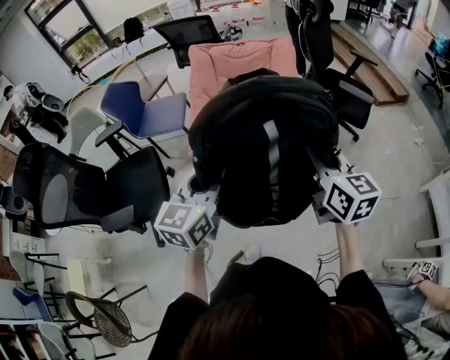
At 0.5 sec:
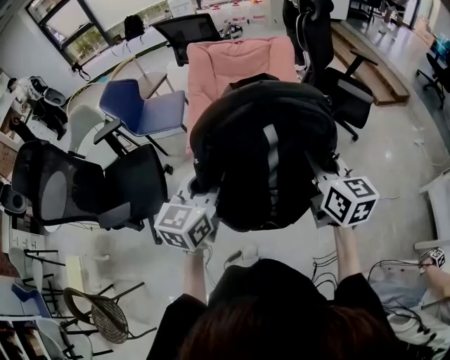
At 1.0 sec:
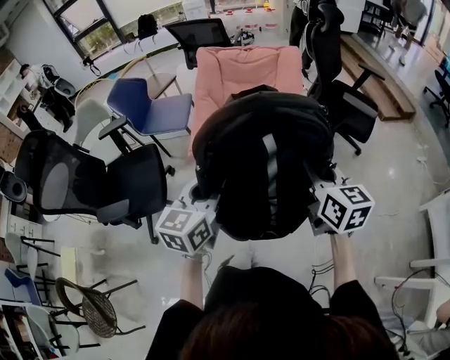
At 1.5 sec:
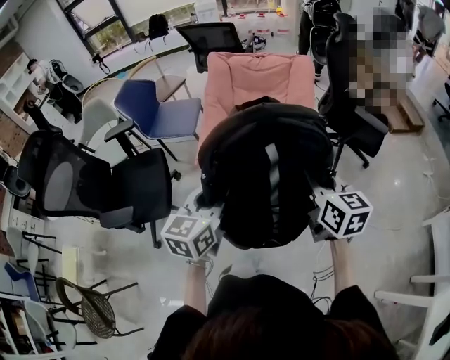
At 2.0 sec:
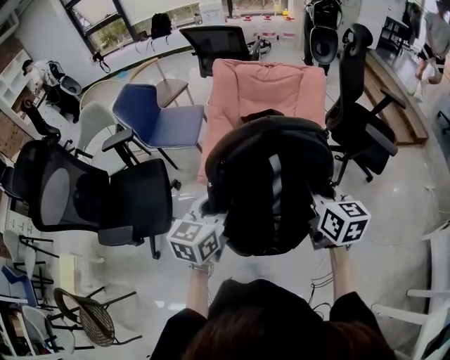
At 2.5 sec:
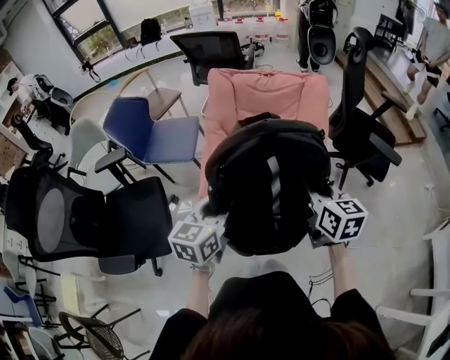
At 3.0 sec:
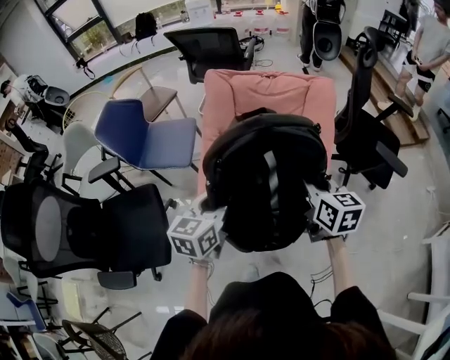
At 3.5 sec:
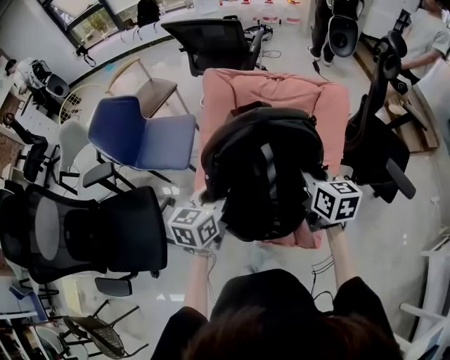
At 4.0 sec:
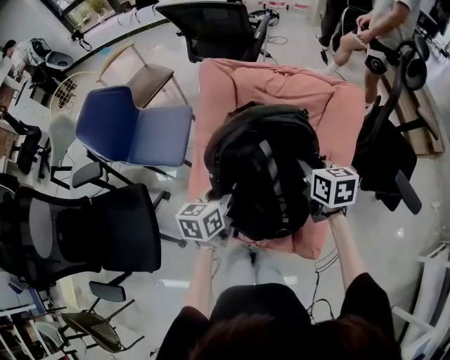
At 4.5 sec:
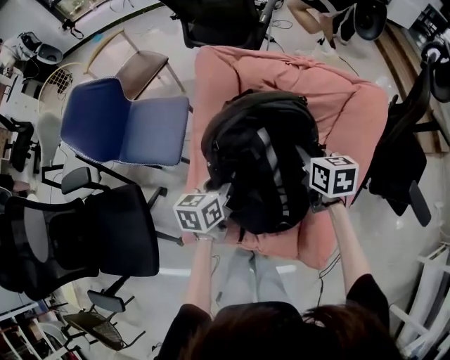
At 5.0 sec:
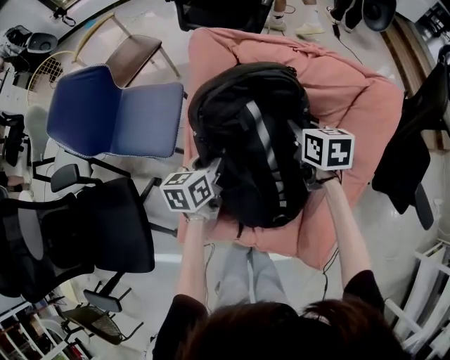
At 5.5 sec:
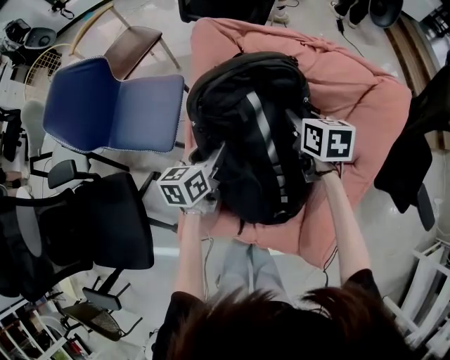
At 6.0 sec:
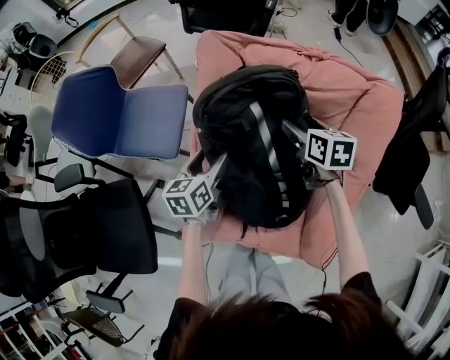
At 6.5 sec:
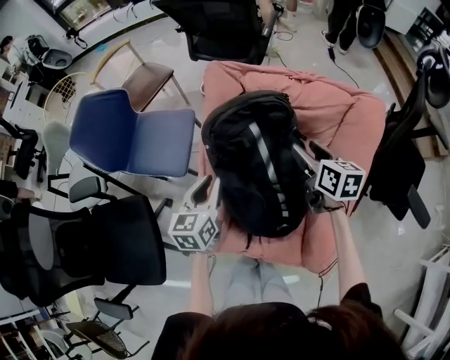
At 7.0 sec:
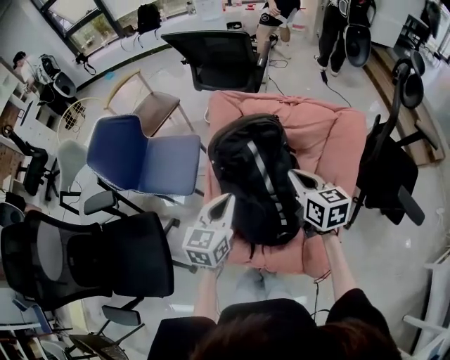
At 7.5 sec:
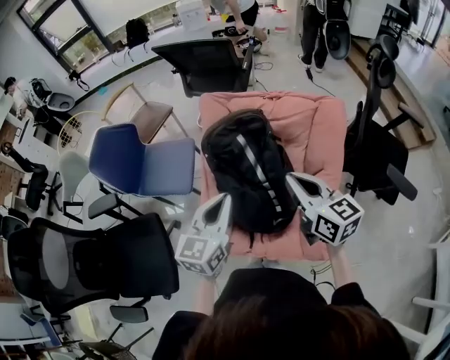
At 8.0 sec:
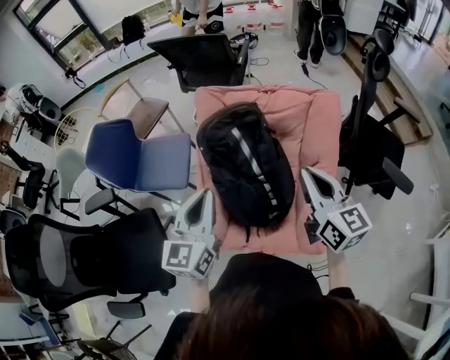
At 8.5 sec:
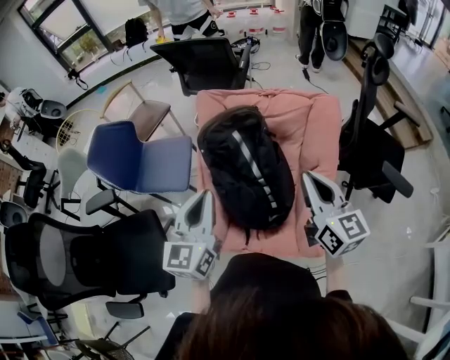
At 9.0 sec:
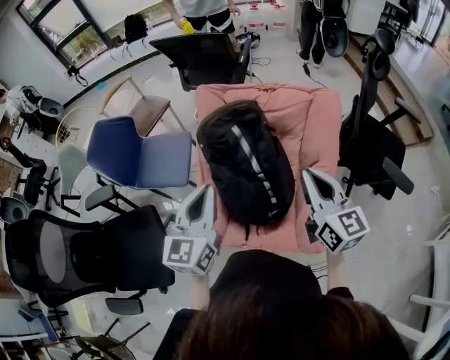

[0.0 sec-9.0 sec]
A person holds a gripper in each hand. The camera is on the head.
0.0 sec to 2.0 sec: The grippers both shift forward and downward by approximately 15 cm.
2.0 sec to 4.5 sec: The two grippers travel together, forward, roughly 50 cm. The left gripper goes some 20 cm downward, and rotates roughly 20 degrees. The right gripper turns by about 20 degrees.
4.5 sec to 7.0 sec: The right gripper heads upward and backward, covering about 10 cm, and opens and closes again. The left gripper shifts roughly 15 cm upward, changes its angle by about 20 degrees, and opens and closes again.
7.0 sec to 9.0 sec: The left gripper goes some 15 cm upward and backward. The right gripper travels backward and upward by some 20 cm, and turns by approximately 20 degrees.

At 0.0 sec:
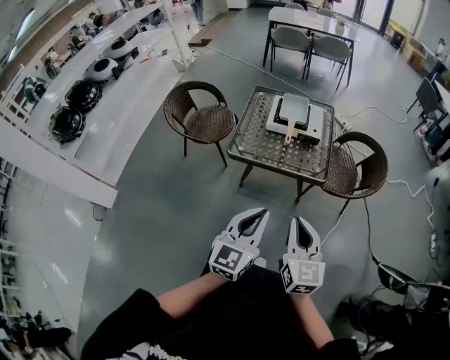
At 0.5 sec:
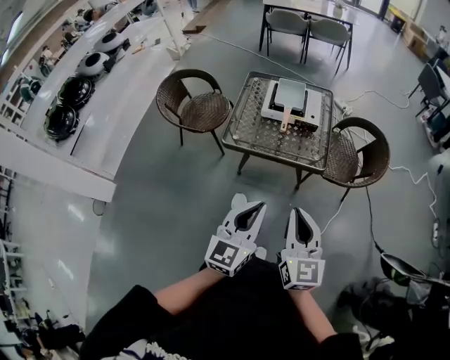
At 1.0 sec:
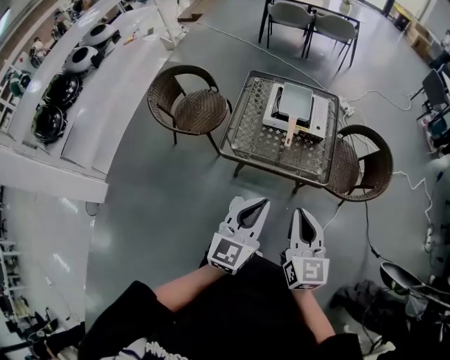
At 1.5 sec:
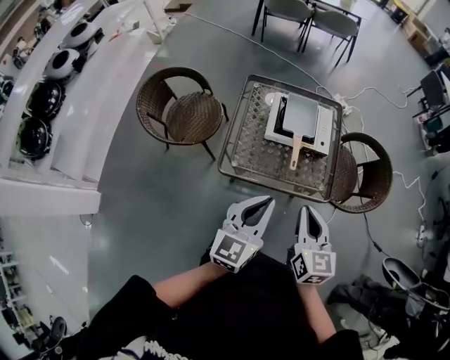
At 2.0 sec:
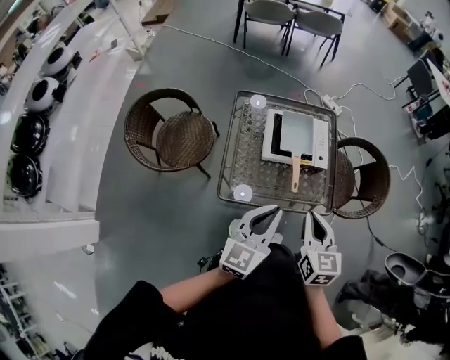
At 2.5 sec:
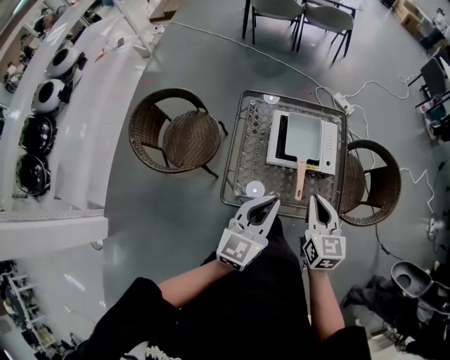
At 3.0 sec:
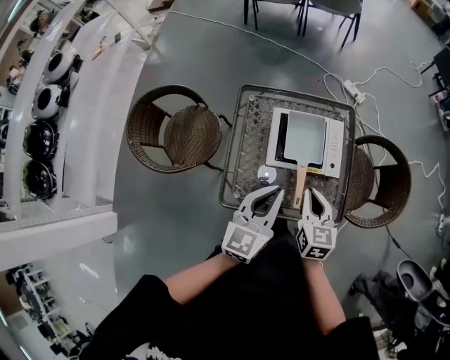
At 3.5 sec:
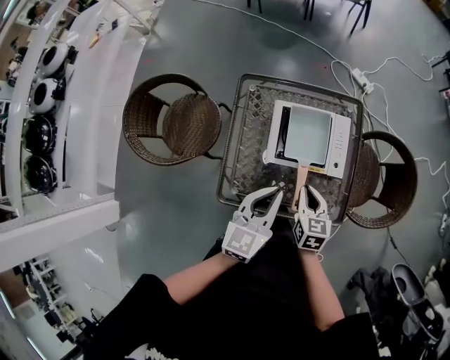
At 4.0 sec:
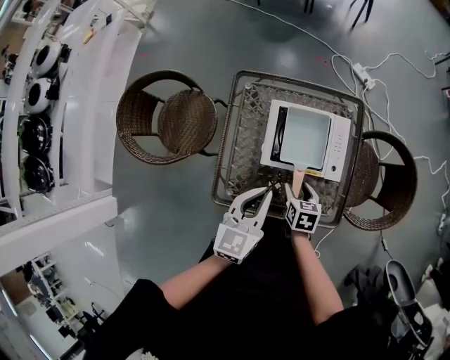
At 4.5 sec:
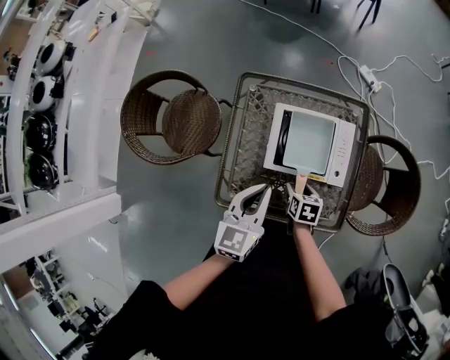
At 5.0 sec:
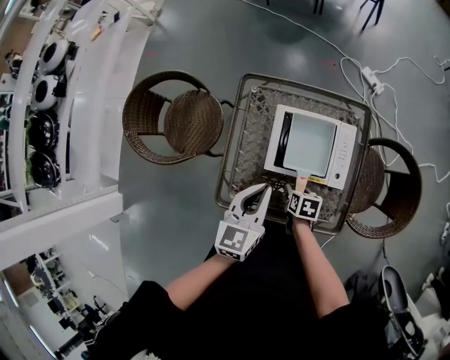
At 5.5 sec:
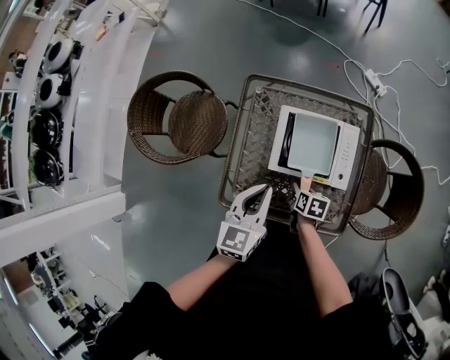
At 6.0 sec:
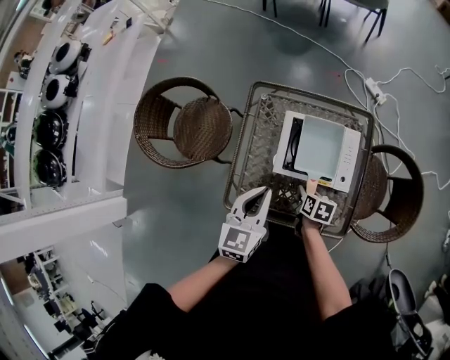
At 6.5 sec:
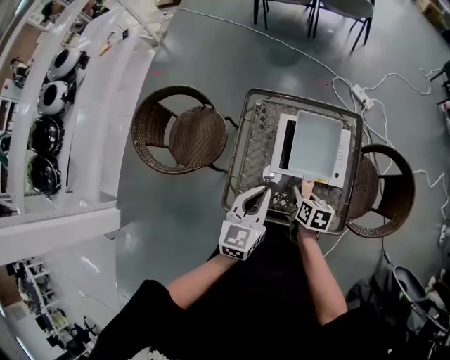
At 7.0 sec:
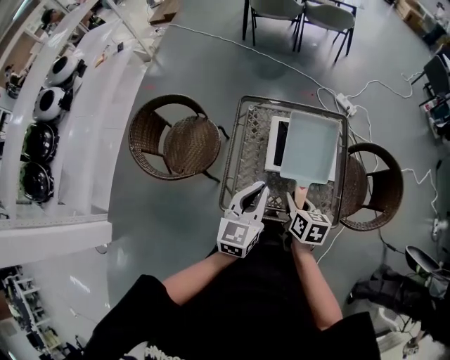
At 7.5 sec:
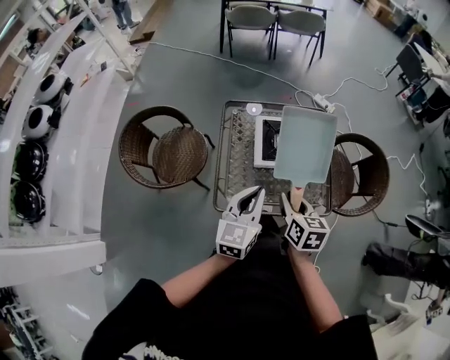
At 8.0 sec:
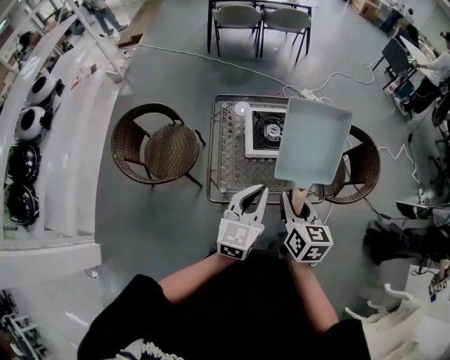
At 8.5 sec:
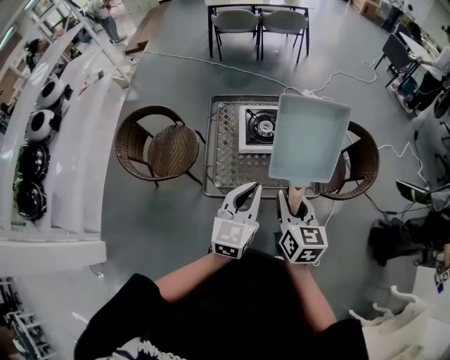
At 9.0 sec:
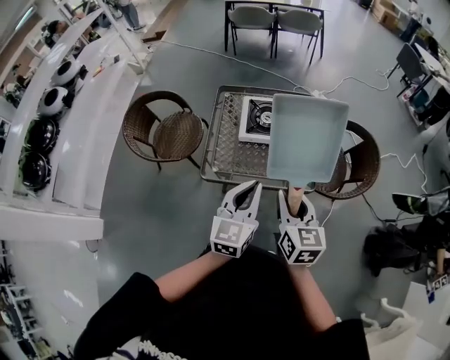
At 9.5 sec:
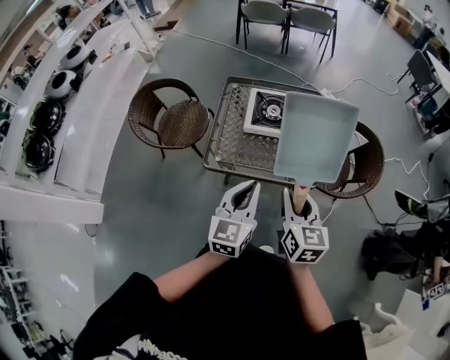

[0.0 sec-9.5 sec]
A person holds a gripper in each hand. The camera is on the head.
0.0 sec to 2.0 sec: The grippers both shift forward by roughly 35 cm.
2.0 sec to 4.0 sec: The left gripper heads forward and downward, covering roughly 25 cm, while the right gripper travels downward and forward by about 35 cm, turns by some 30 degrees, and opens its fingers.
4.0 sec to 5.5 sec: The right gripper goes roughly 5 cm downward, and closes up.
5.5 sec to 7.5 sec: The right gripper is displaced upward and backward by roughly 30 cm, and turns by roughly 30 degrees, while the left gripper goes approximately 20 cm backward and upward.
7.5 sec to 9.5 sec: The right gripper is displaced backward, to the right and upward by roughly 25 cm. Meanwhile the left gripper goes roughly 20 cm backward and to the right.

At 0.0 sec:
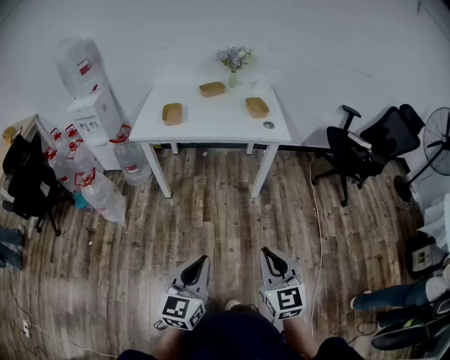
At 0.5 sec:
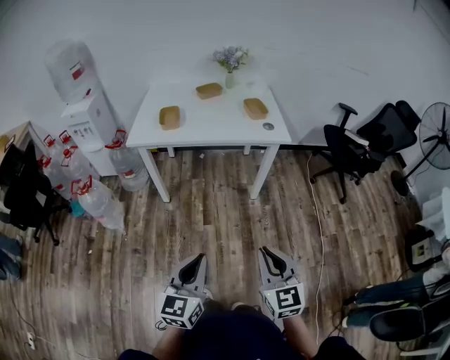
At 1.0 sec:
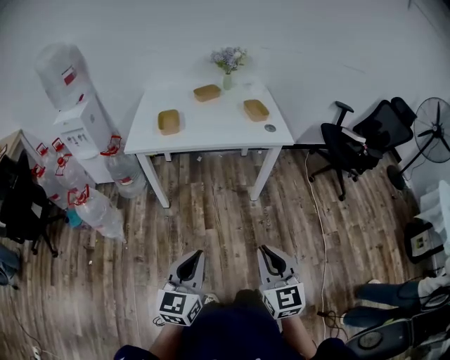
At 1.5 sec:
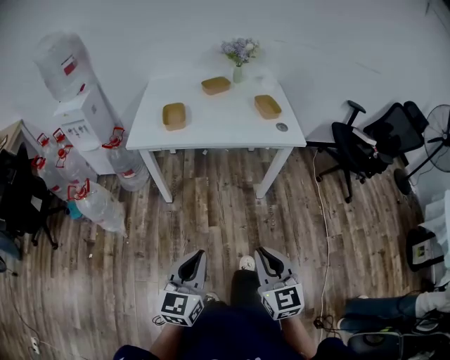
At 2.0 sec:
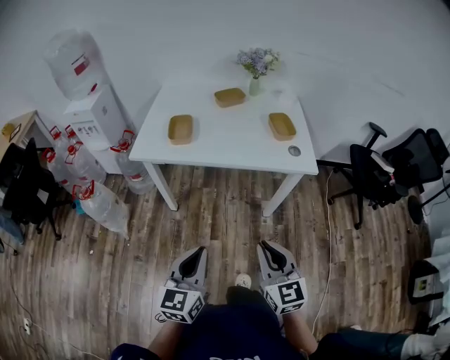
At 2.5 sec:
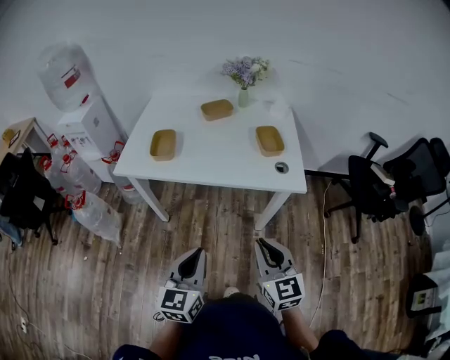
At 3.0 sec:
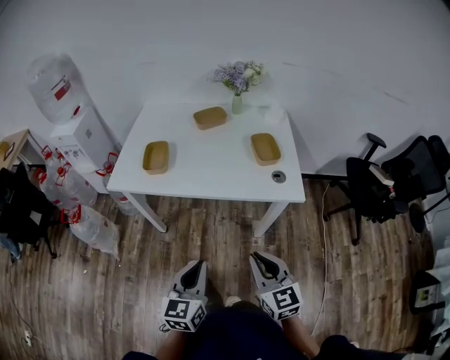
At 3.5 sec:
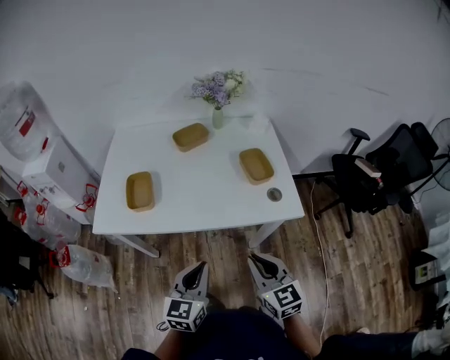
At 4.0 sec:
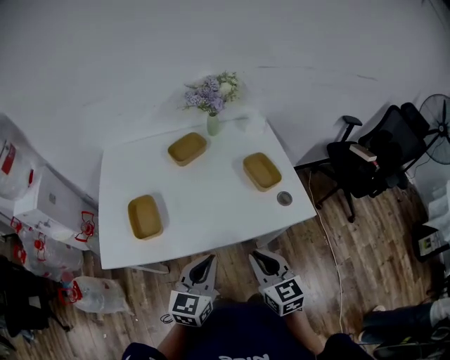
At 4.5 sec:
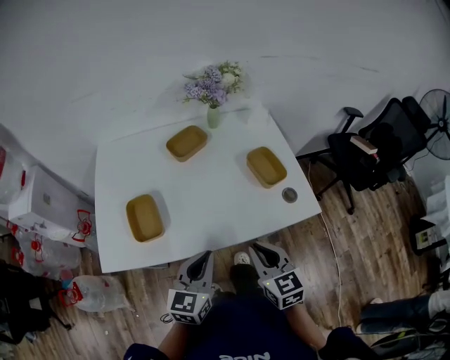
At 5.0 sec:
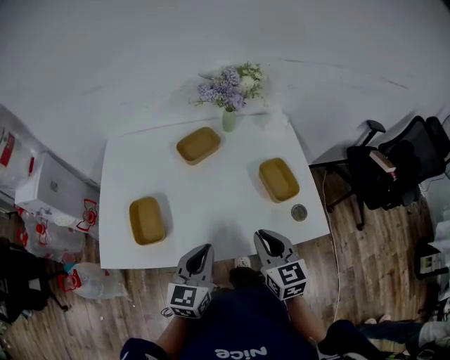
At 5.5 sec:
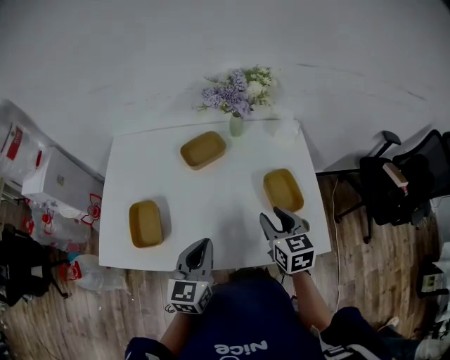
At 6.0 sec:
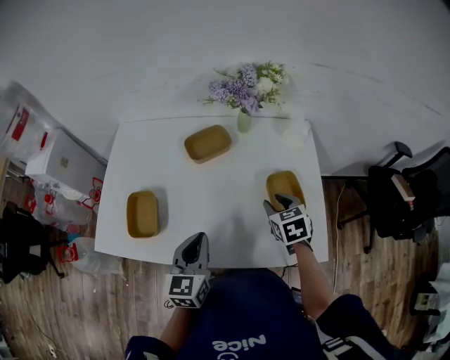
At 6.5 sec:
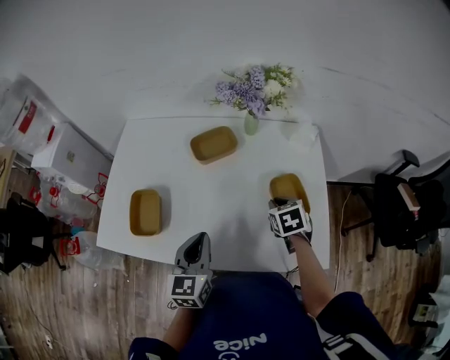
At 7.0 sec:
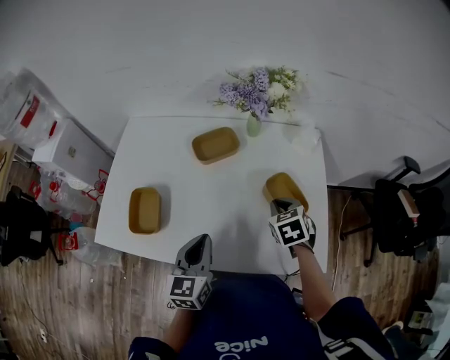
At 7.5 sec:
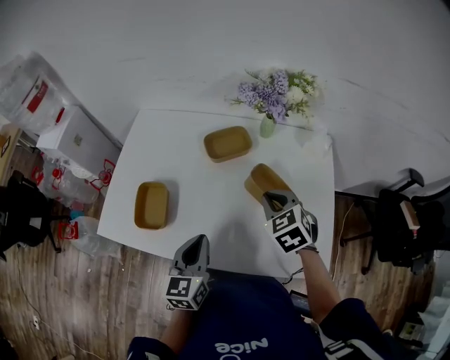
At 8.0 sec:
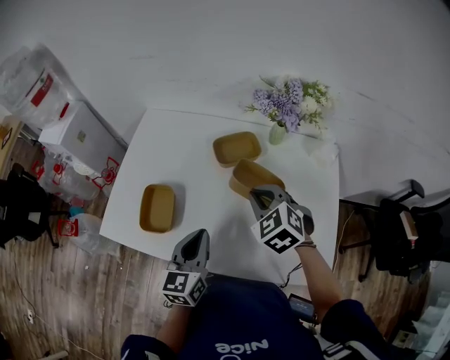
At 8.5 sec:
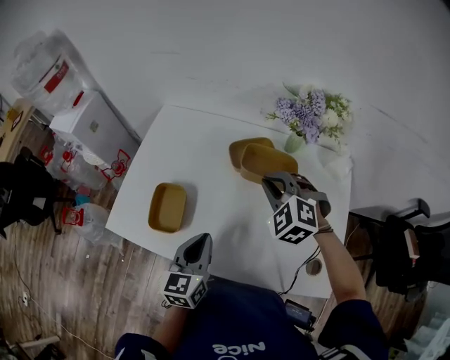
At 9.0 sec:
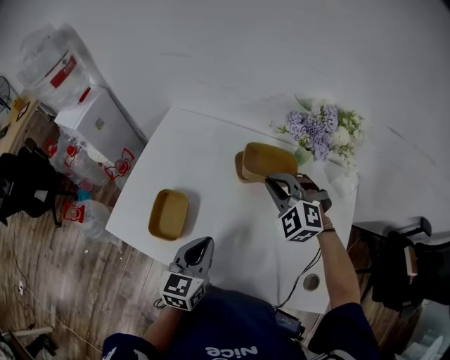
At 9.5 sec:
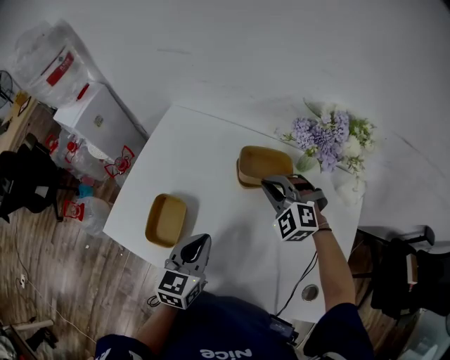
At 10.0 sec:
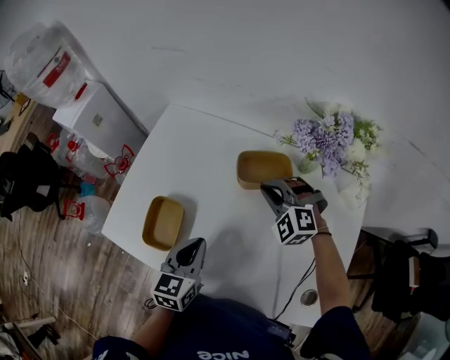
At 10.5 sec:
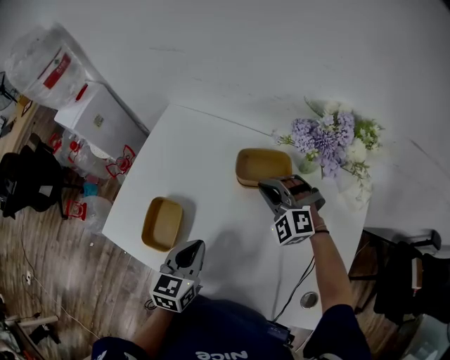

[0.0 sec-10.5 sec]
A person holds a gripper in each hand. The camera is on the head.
0.0 sec to 2.0 sec: The two grippers go roughly 25 cm forward.
2.0 sec to 4.0 sec: The two grippers go some 35 cm forward. The left gripper rotates some 20 degrees.
4.0 sec to 6.5 sec: The left gripper shifts some 20 cm forward, and changes its angle by some 30 degrees. The right gripper goes about 35 cm forward, and tilts its fingers some 30 degrees downward.
6.5 sec to 8.5 sec: The right gripper is displaced to the left, upward and forward by roughly 25 cm, and twists approximately 60 degrees counterclockwise, seen from behind. Meanwhile the left gripper travels to the left by about 5 cm.
8.5 sec to 10.5 sec: The right gripper goes approximately 15 cm forward and downward, and changes its angle by about 20 degrees; the left gripper is displaced forward by some 10 cm.
